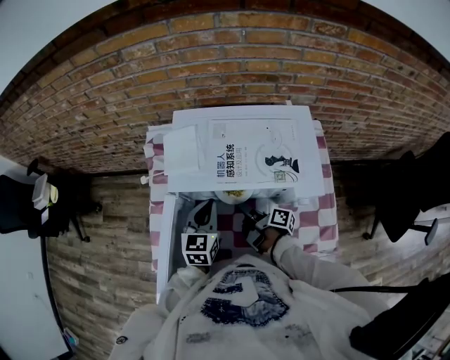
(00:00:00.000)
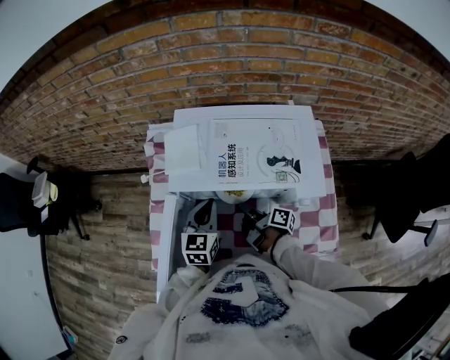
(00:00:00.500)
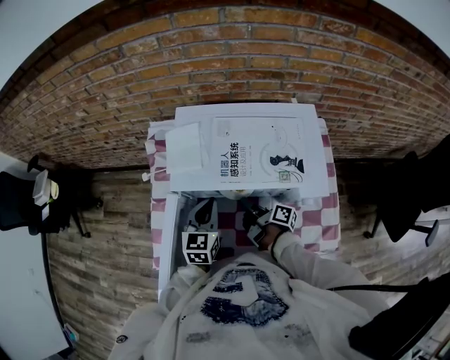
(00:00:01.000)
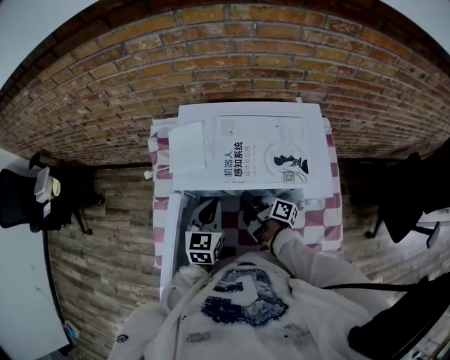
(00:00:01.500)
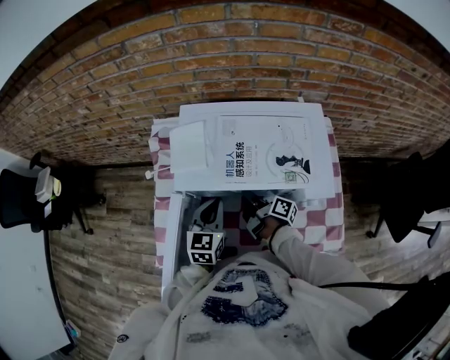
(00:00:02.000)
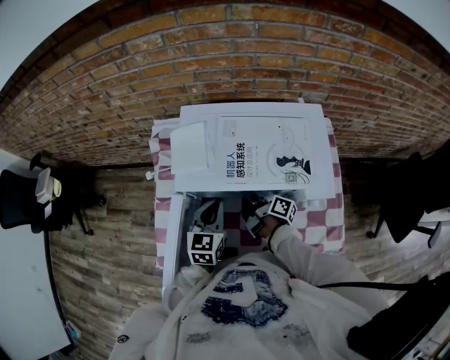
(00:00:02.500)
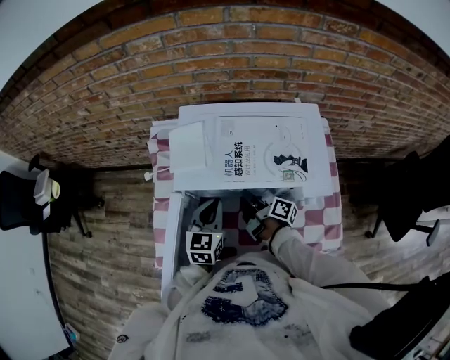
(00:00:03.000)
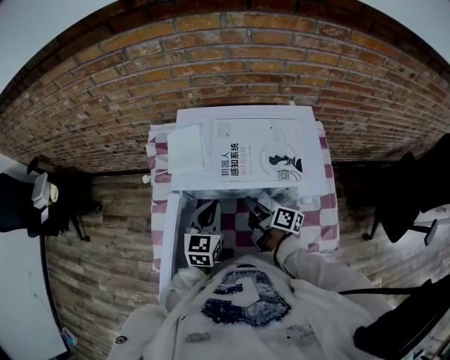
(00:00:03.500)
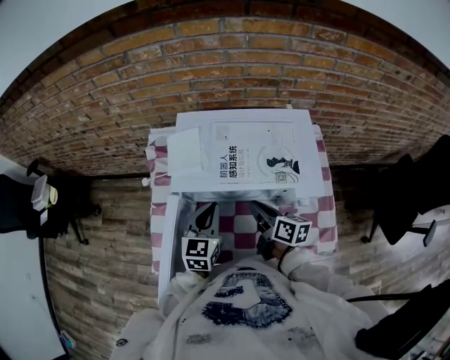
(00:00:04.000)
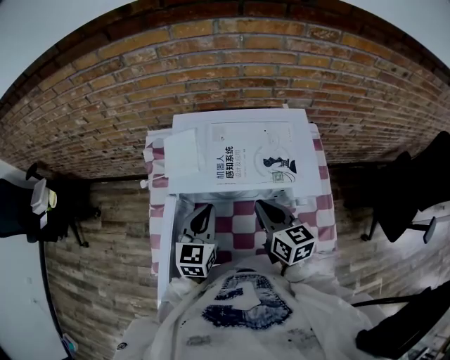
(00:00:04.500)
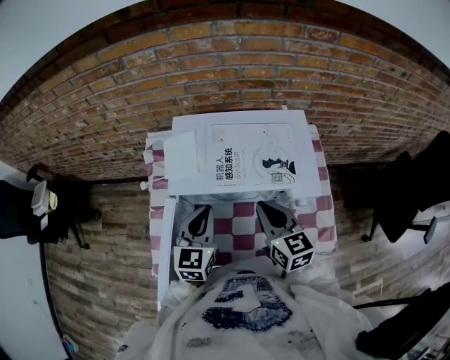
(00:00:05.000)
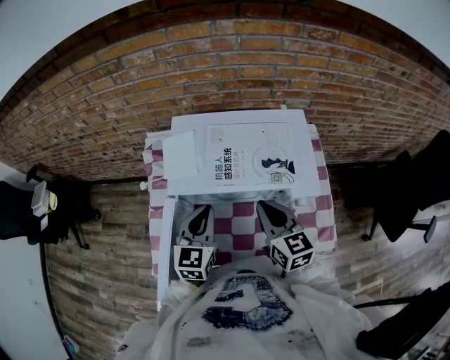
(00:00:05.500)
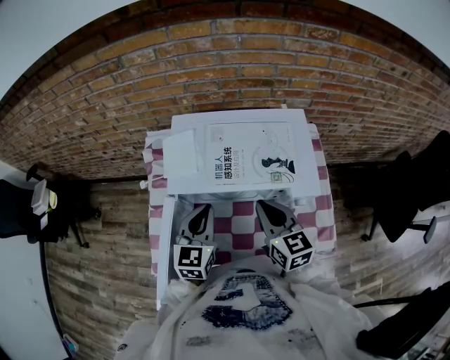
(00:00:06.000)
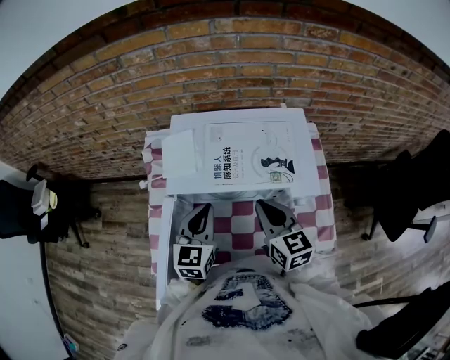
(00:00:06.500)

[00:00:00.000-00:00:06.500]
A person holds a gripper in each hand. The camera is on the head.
00:00:02.000 to 00:00:04.500: The left gripper shifts some 5 cm upward.

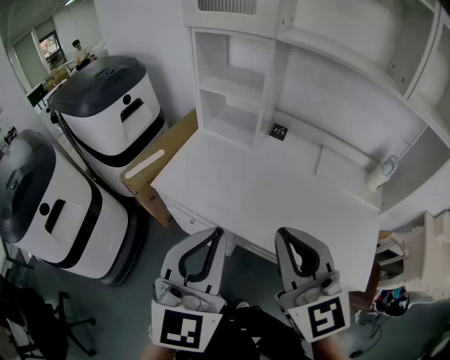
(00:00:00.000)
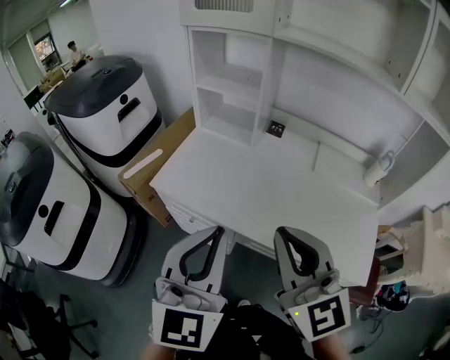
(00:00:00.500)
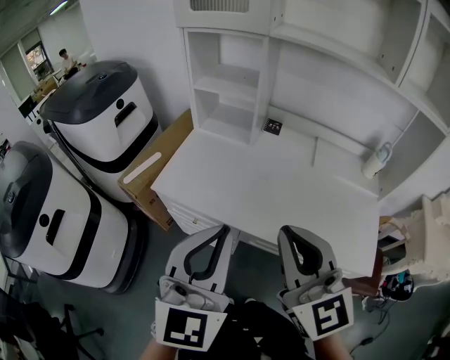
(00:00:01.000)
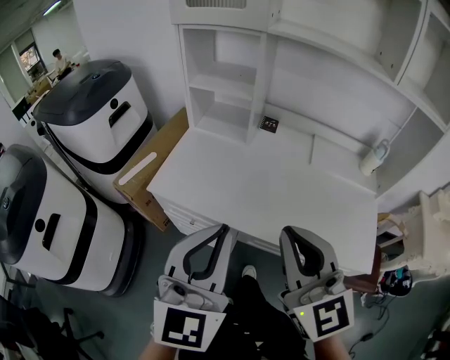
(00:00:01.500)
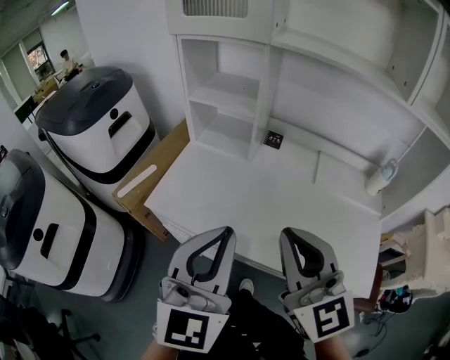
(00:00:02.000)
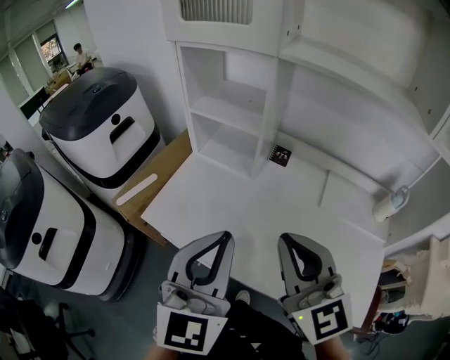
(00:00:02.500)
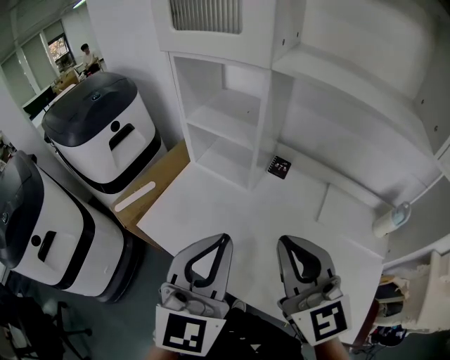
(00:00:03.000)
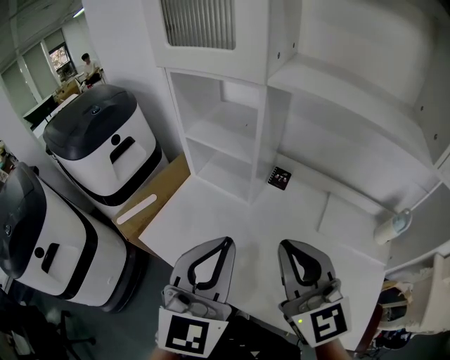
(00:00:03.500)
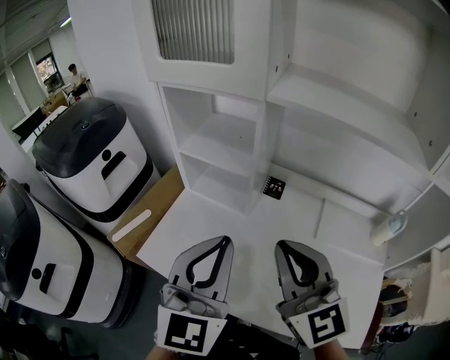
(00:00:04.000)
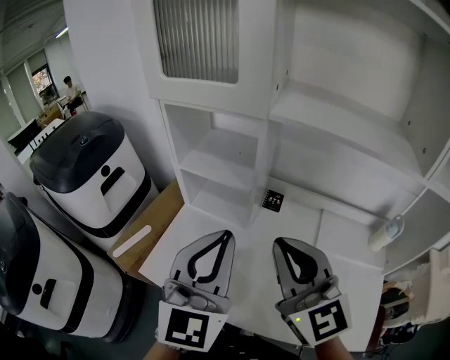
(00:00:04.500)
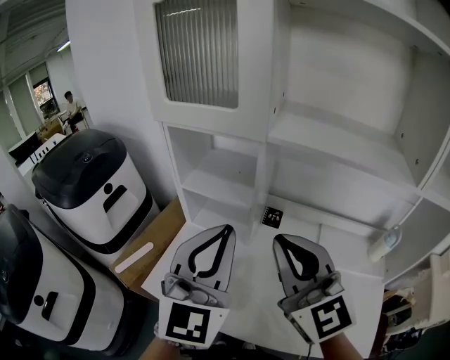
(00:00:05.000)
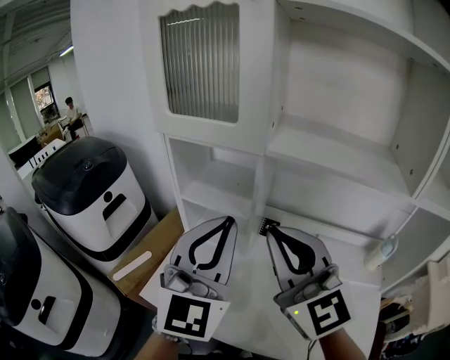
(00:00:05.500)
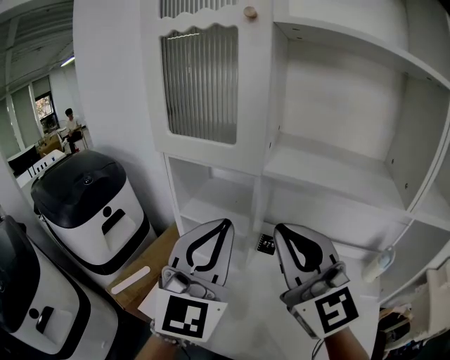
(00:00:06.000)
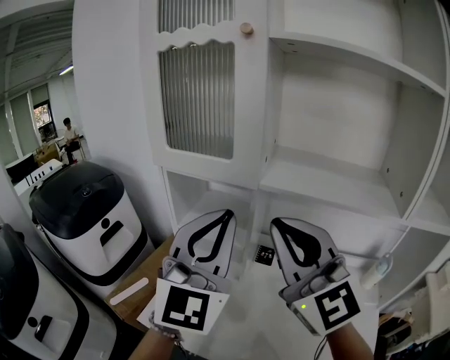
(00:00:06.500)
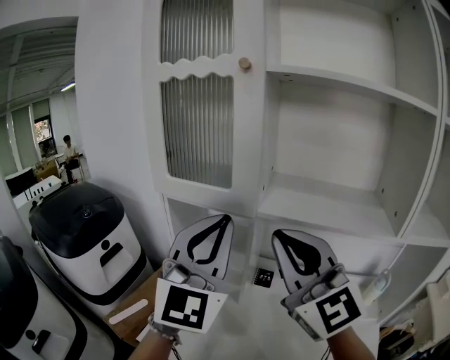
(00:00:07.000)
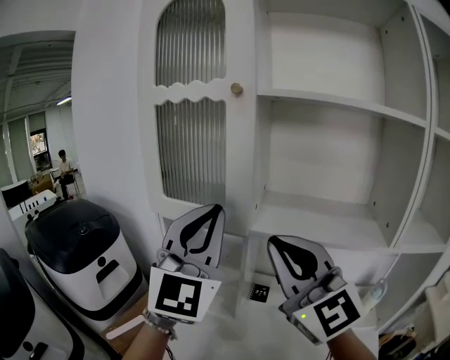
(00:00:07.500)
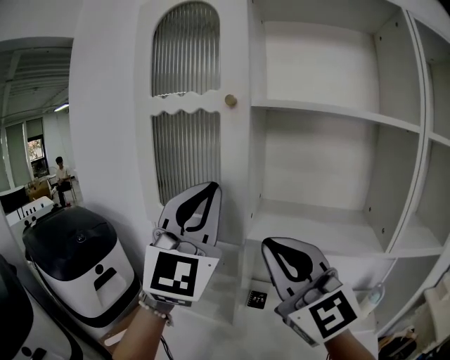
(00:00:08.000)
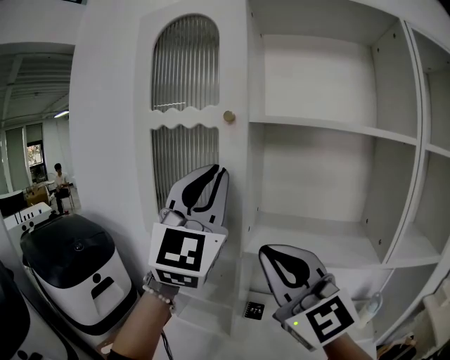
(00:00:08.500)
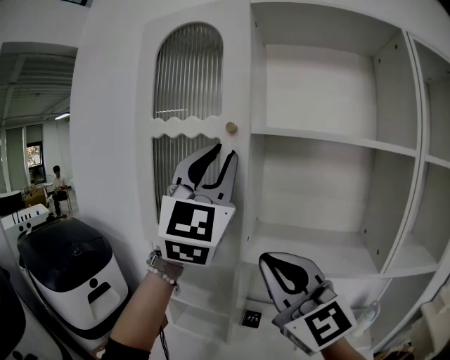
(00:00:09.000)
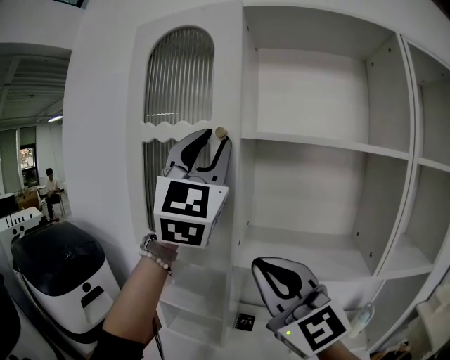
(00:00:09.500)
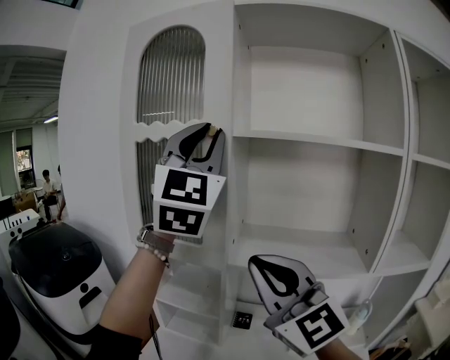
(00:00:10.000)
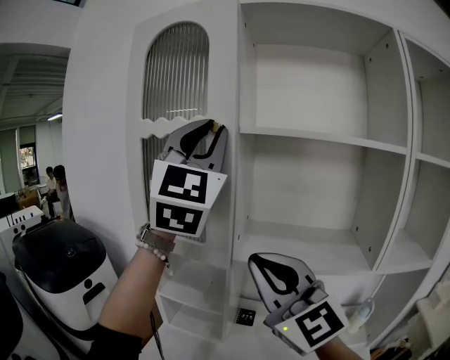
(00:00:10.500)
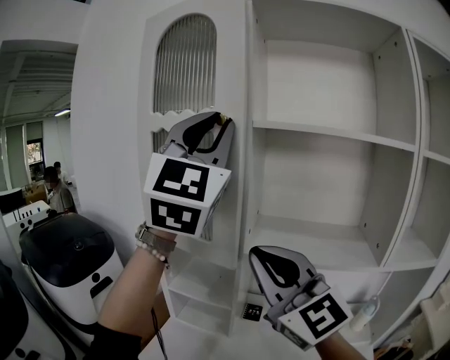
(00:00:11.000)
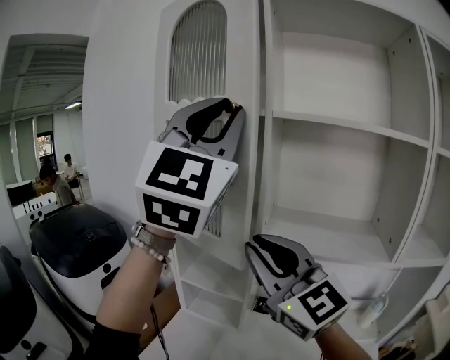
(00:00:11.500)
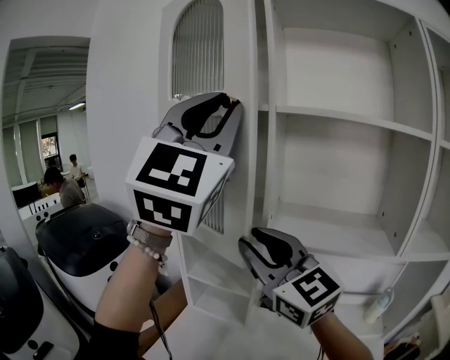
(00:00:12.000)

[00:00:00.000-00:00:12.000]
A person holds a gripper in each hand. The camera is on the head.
00:00:00.000 to 00:00:02.000: Both grippers travel together forward, about 5 cm.
00:00:02.000 to 00:00:04.000: The grippers both shift forward by about 15 cm.
00:00:04.000 to 00:00:06.000: The grippers both shift upward and forward by roughly 15 cm.
00:00:06.000 to 00:00:08.000: The left gripper moves upward, approximately 15 cm; the right gripper is displaced upward by about 10 cm.
00:00:08.000 to 00:00:10.000: The left gripper heads upward and forward, covering about 15 cm.
00:00:10.000 to 00:00:12.000: The left gripper travels backward and to the left by approximately 10 cm; the right gripper is displaced to the left by about 10 cm, and opens.

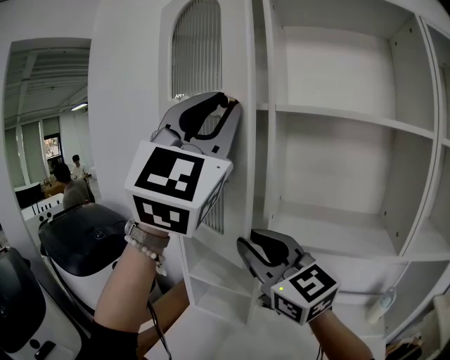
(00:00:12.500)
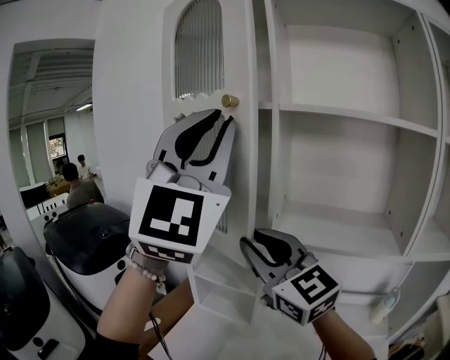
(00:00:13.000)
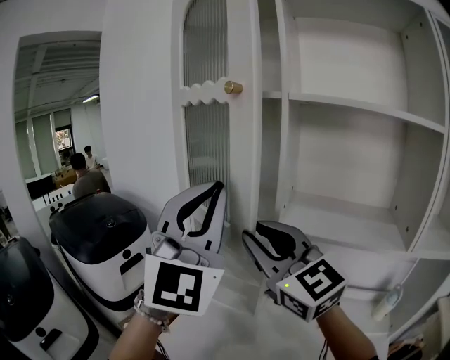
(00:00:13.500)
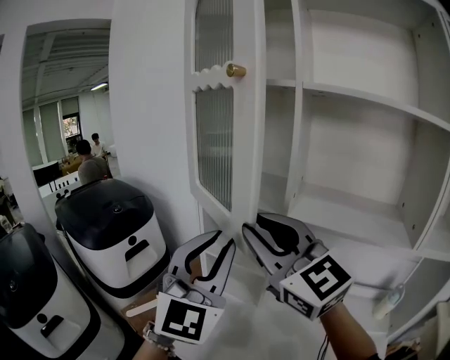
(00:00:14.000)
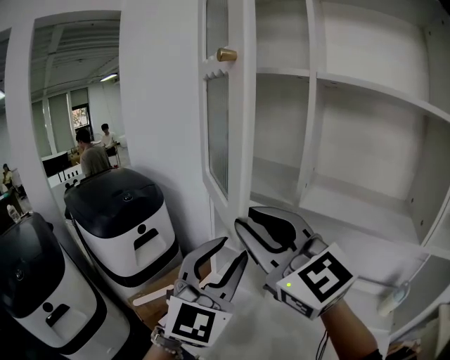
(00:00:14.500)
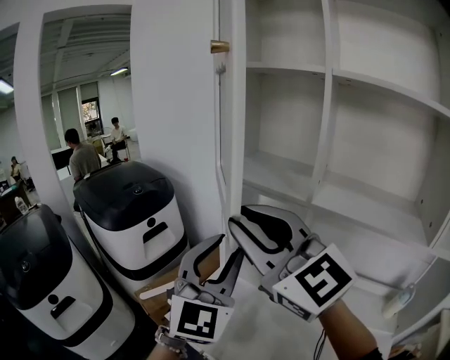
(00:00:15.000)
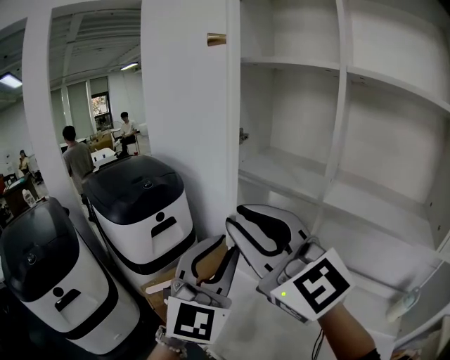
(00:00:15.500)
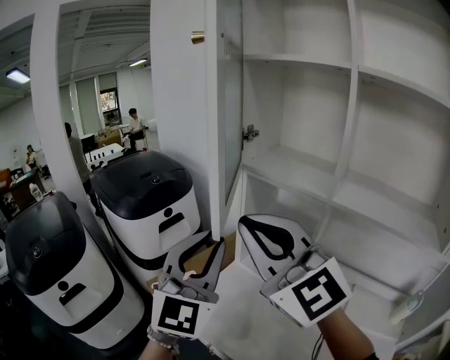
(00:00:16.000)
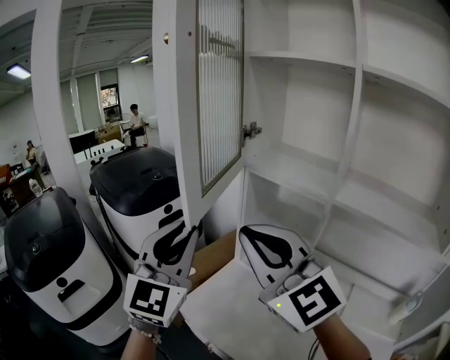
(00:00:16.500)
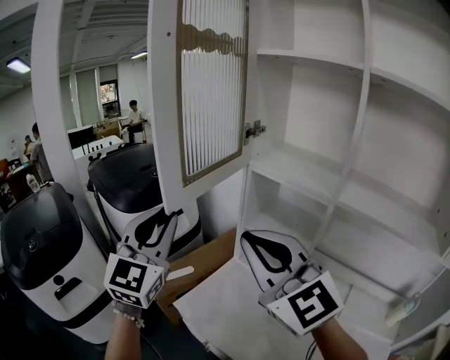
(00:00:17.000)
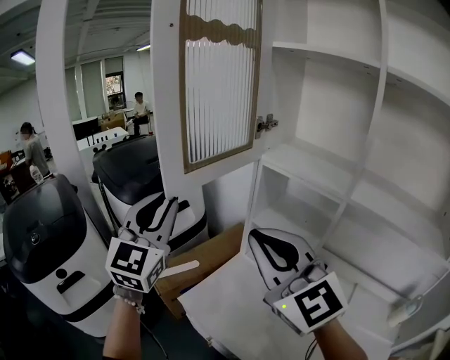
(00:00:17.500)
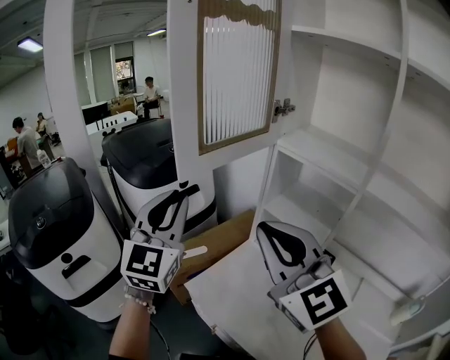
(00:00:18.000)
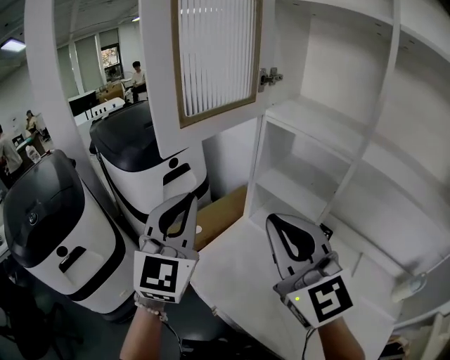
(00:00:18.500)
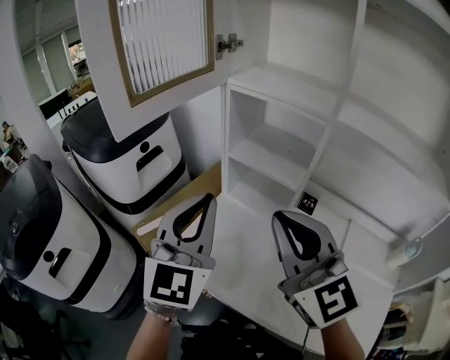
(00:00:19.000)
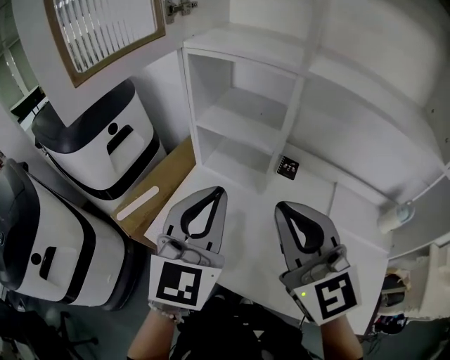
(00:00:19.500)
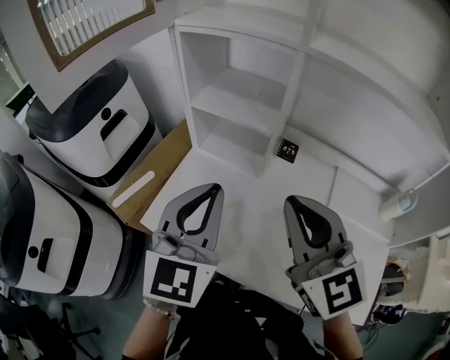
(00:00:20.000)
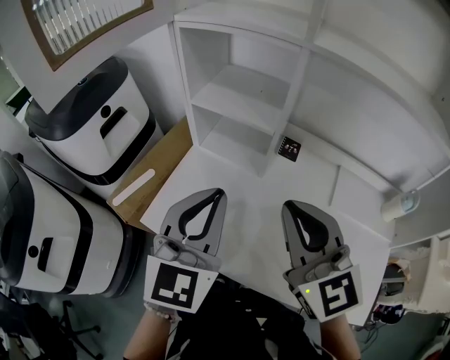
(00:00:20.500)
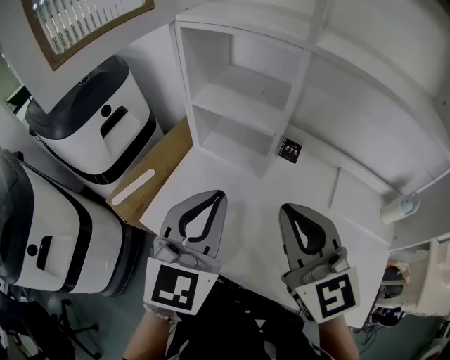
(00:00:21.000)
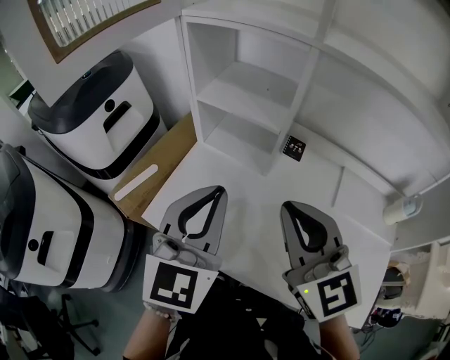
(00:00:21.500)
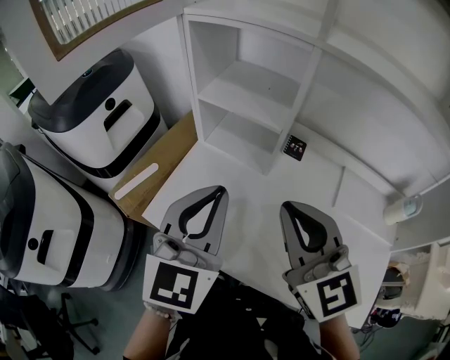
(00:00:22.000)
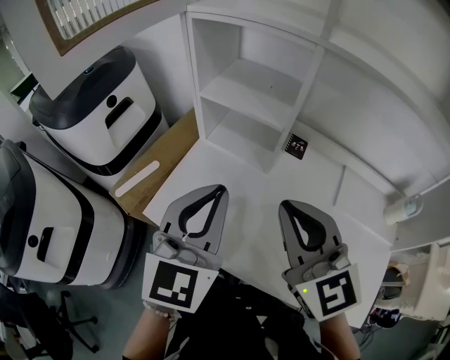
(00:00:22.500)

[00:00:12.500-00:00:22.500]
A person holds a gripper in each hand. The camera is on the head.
00:00:12.500 to 00:00:14.500: The left gripper goes some 30 cm downward, and rotates some 20 degrees, while the right gripper is displaced to the left and backward by about 10 cm.
00:00:14.500 to 00:00:16.500: The left gripper travels to the left by approximately 15 cm, while the right gripper travels to the left by approximately 5 cm, and closes up.
00:00:16.500 to 00:00:18.500: Both grippers travel together downward, roughly 5 cm. The left gripper travels to the left and back again, roughly 10 cm each way.
00:00:18.500 to 00:00:20.500: Both grippers move to the right and downward, approximately 20 cm. The right gripper rotates about 20 degrees, while the left gripper swivels about 30 degrees.
00:00:20.500 to 00:00:22.500: The grippers stay close to where they were, moving slightly.
